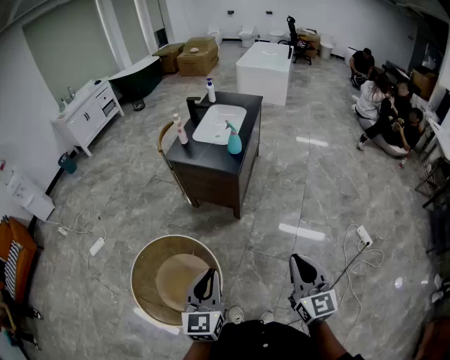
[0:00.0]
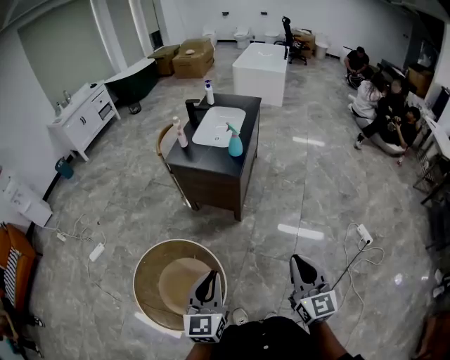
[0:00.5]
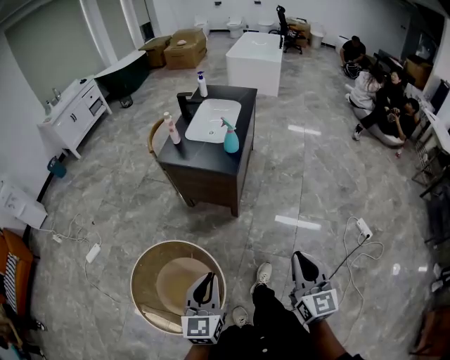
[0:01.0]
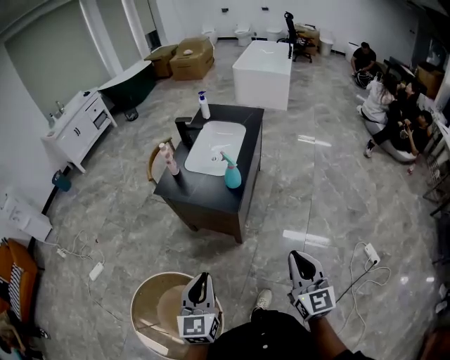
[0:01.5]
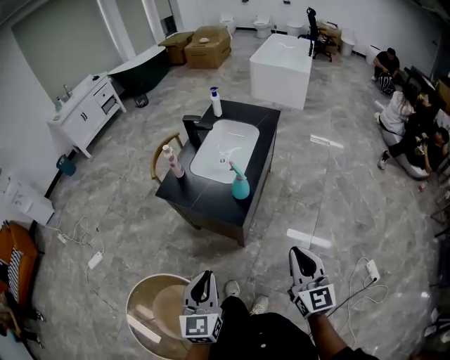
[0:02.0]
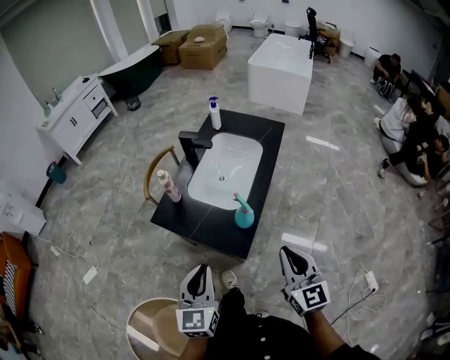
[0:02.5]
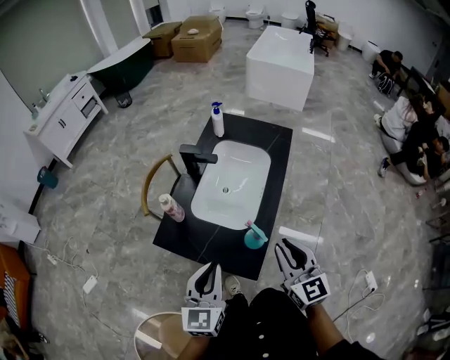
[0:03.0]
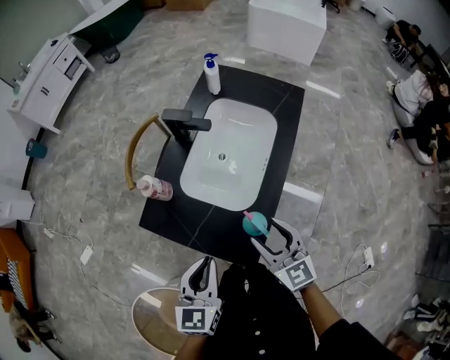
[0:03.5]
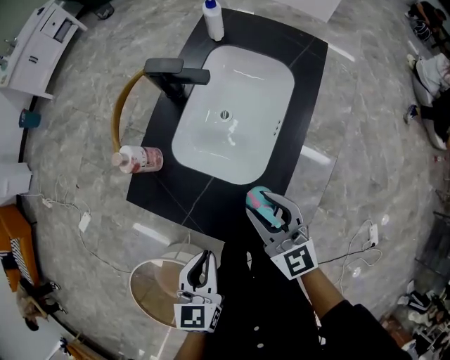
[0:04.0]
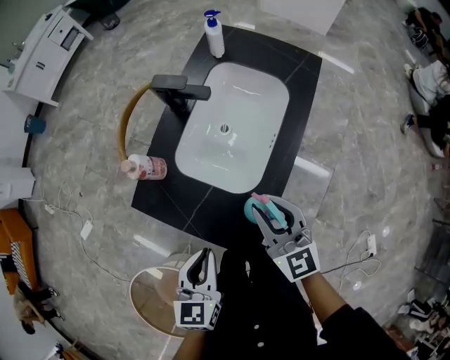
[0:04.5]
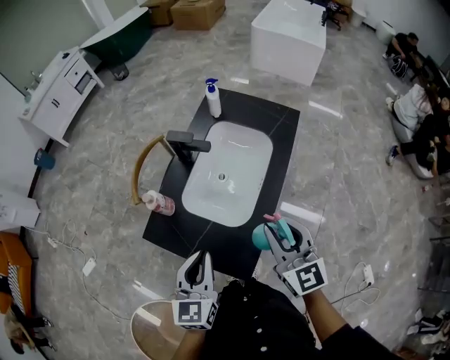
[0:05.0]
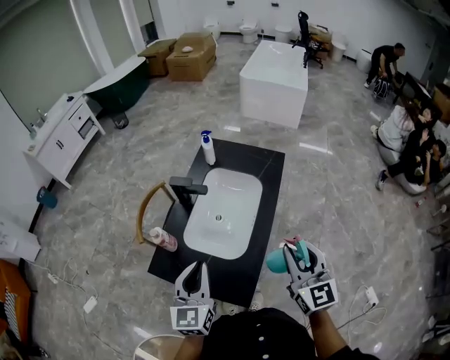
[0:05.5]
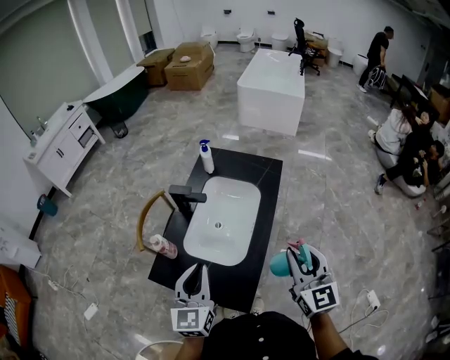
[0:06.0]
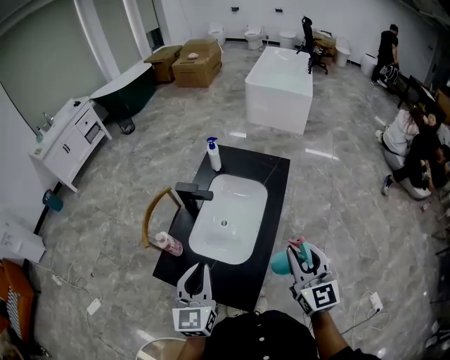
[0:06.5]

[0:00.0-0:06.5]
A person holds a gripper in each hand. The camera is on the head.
0:00.0 to 0:02.0: The two grippers go roughly 35 cm forward.
0:02.0 to 0:04.5: Both grippers move forward, about 35 cm. The right gripper opens up.
0:04.5 to 0:06.5: The left gripper is displaced upward and forward by about 20 cm, and swivels some 20 degrees. The right gripper shifts roughly 20 cm upward and to the right, and rotates approximately 20 degrees.

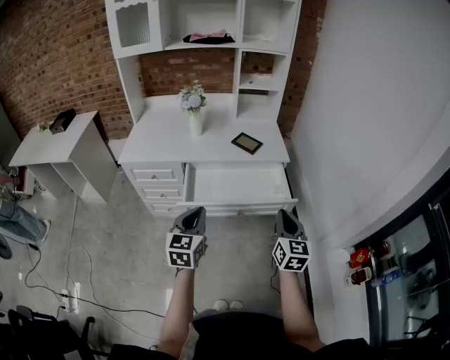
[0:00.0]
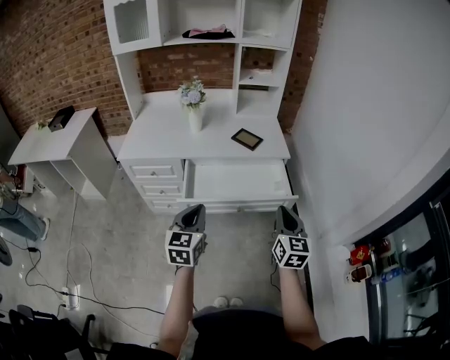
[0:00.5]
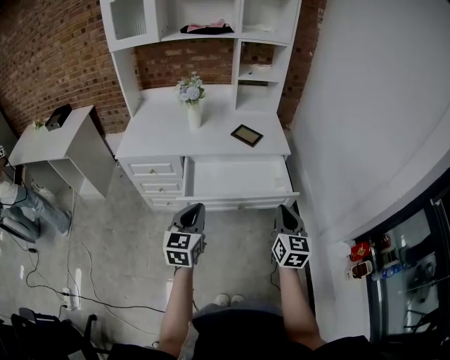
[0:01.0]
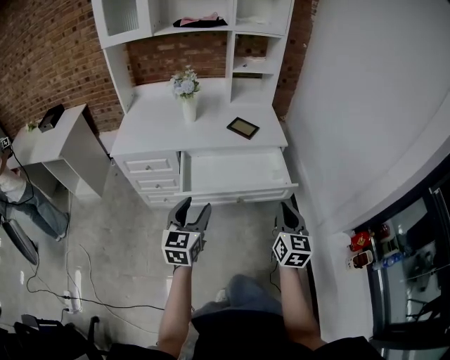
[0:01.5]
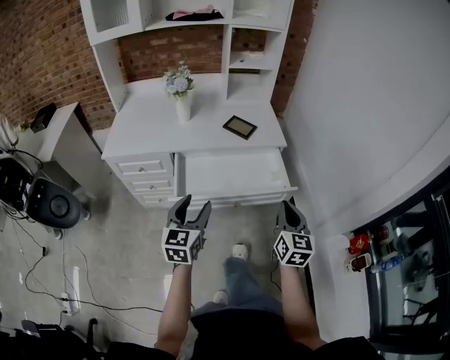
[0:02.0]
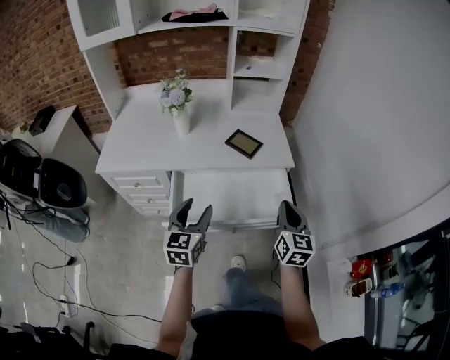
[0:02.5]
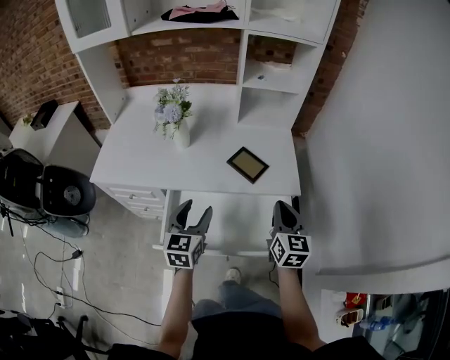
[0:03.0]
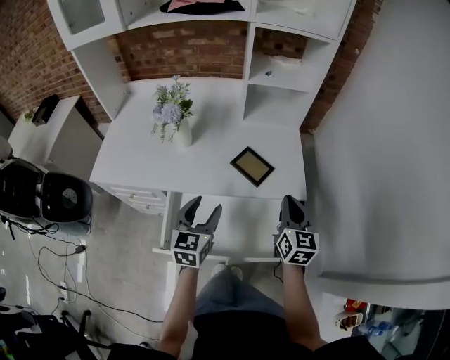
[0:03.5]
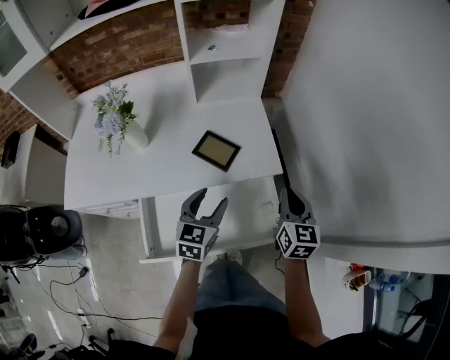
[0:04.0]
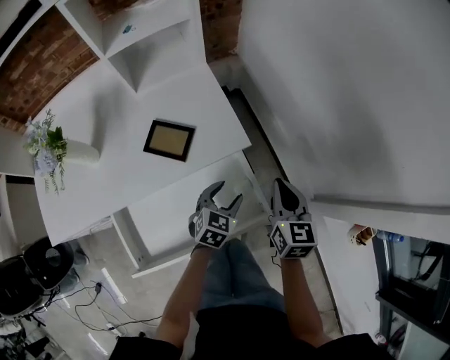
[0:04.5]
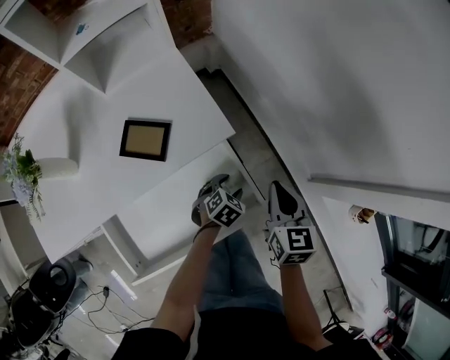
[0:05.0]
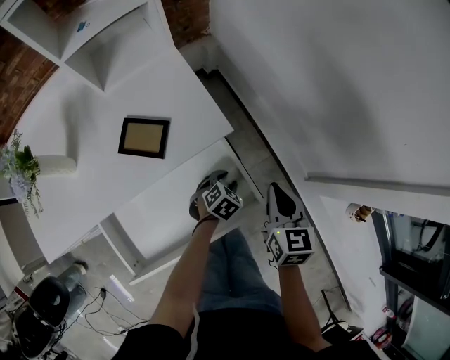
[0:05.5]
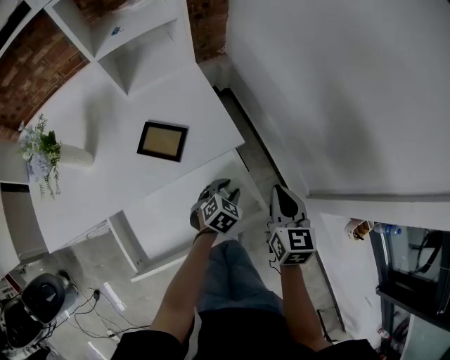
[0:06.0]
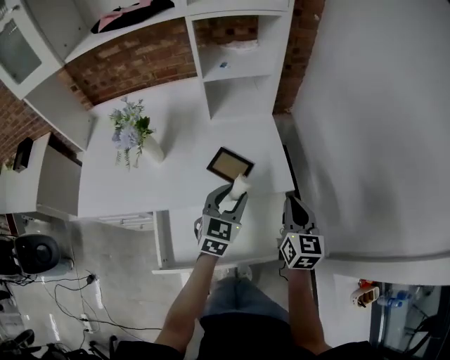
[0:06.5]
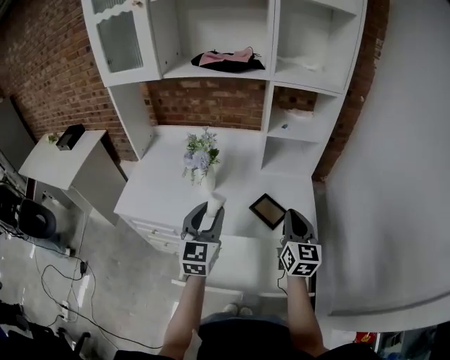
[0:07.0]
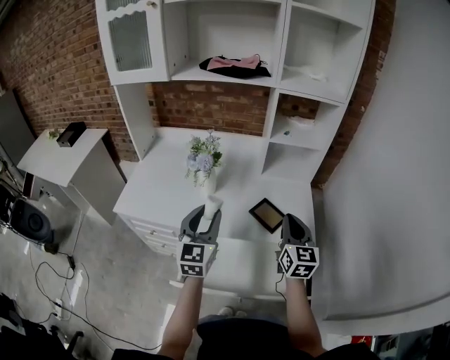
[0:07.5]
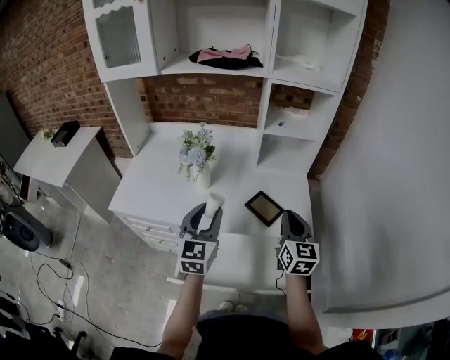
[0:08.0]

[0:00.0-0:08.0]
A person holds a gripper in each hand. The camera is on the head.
0:00.0 to 0:02.0: The left gripper goes about 5 cm forward, and opens.
0:02.0 to 0:04.0: The grippers both shift forward by roughly 35 cm.
0:04.0 to 0:06.0: The right gripper shifts by some 10 cm, while the left gripper is displaced downward by about 20 cm, and turns by some 50 degrees.
0:06.0 to 0:08.0: The left gripper shifts by approximately 50 cm, and angles its fingers upward, by approximately 50 degrees; the right gripper shifts by roughly 30 cm, and swivels some 30 degrees.

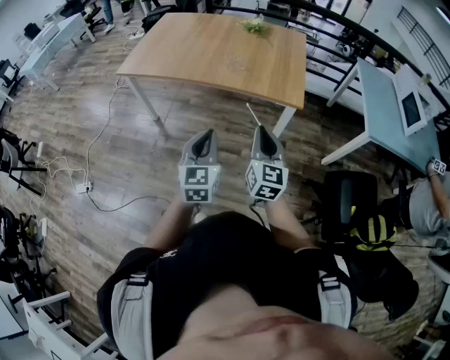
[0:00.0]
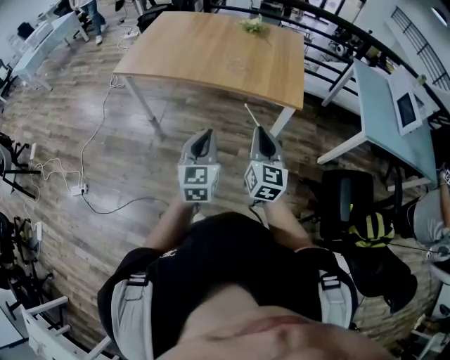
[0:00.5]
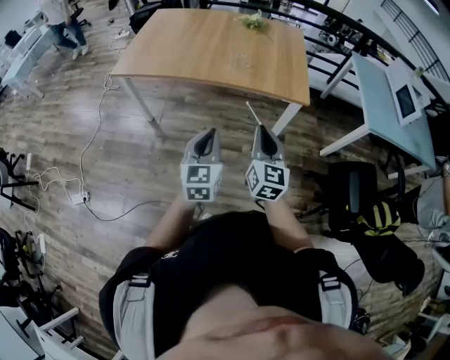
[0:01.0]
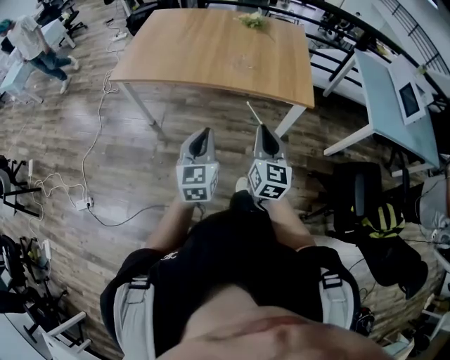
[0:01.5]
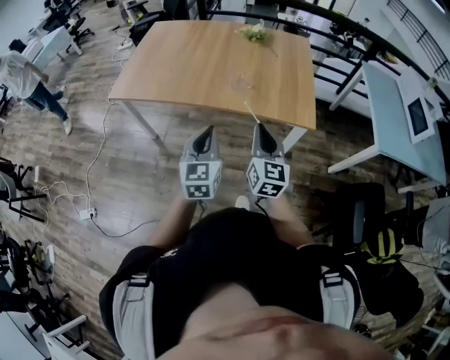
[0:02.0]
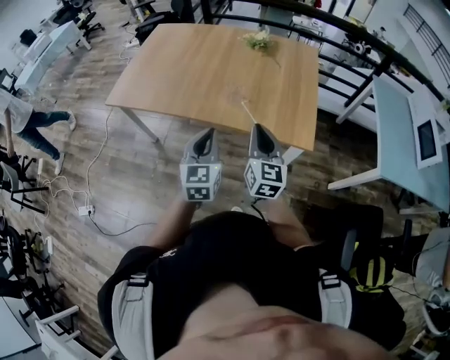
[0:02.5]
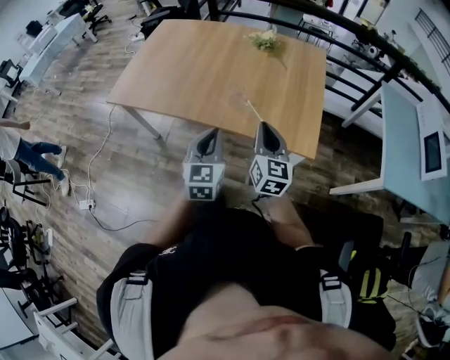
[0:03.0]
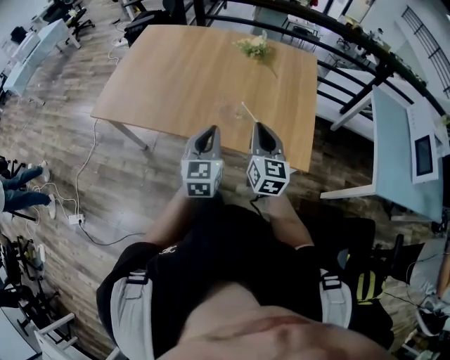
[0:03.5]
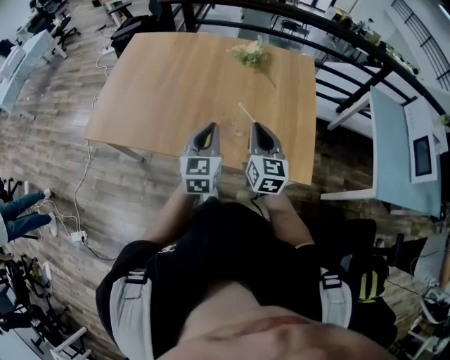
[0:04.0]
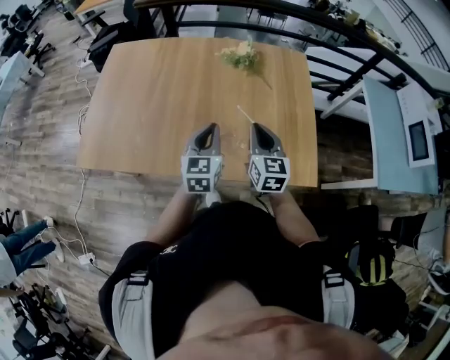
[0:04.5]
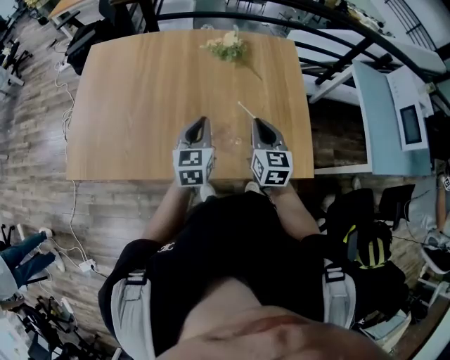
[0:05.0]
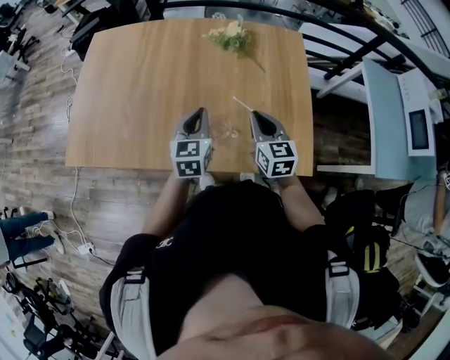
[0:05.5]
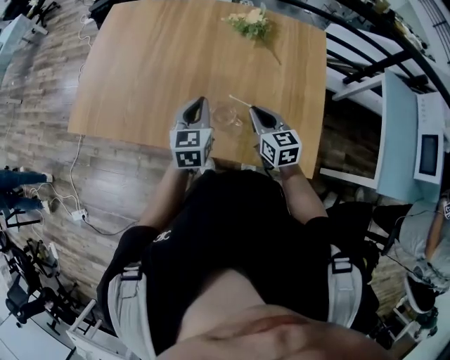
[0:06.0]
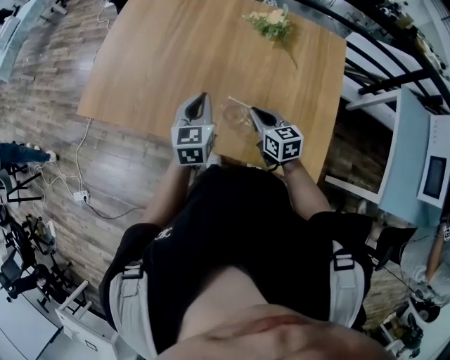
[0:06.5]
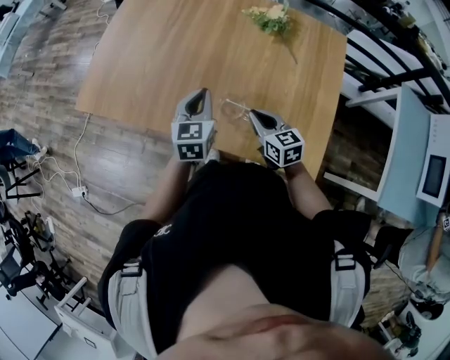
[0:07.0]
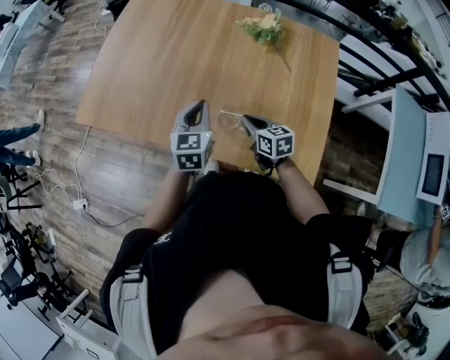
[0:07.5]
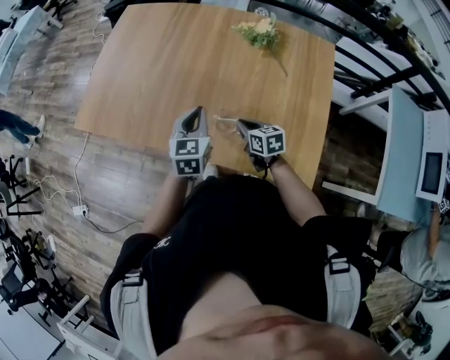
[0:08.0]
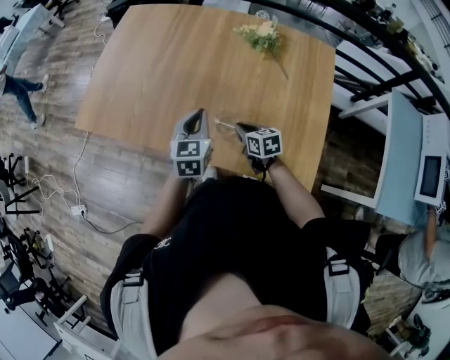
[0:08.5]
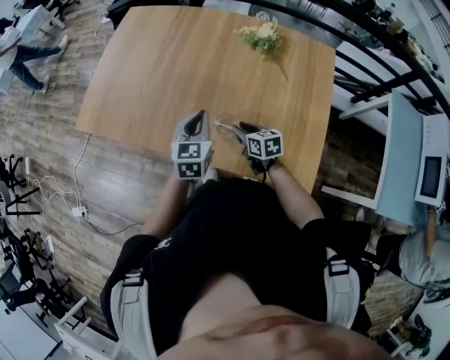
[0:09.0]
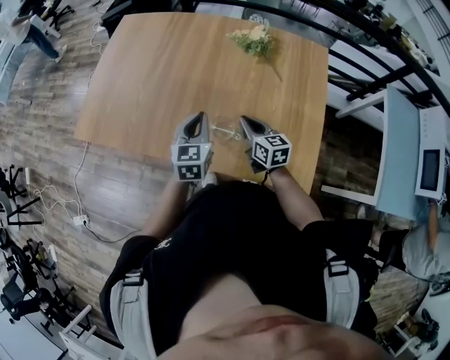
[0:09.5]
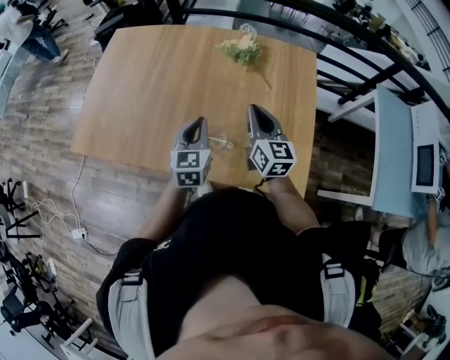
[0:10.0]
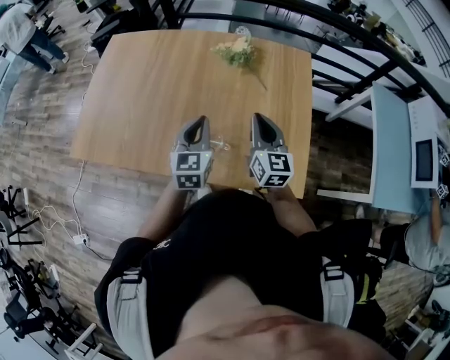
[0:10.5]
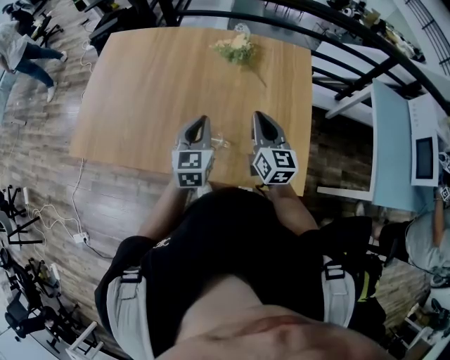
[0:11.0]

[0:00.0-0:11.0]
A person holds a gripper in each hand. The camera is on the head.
0:00.0 to 0:02.0: The grippers both shift forward and to the left by approximately 20 cm.
0:02.0 to 0:03.5: Both grippers travel together forward, about 20 cm.
0:03.5 to 0:05.5: The two grippers go about 20 cm forward.
0:05.5 to 0:07.5: The right gripper heads downward, covering some 10 cm, and rotates roughly 30 degrees.
0:07.5 to 0:09.0: The right gripper opens.
0:09.0 to 0:11.0: The left gripper is displaced to the right by about 5 cm. The right gripper travels upward and to the right by approximately 20 cm, swivels some 40 degrees, and closes up.

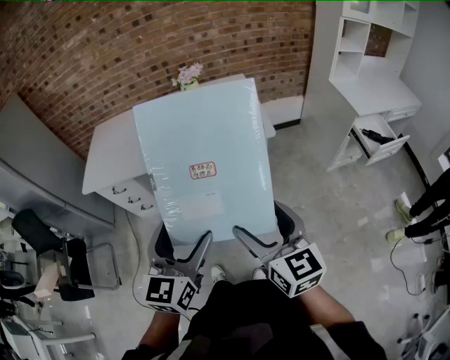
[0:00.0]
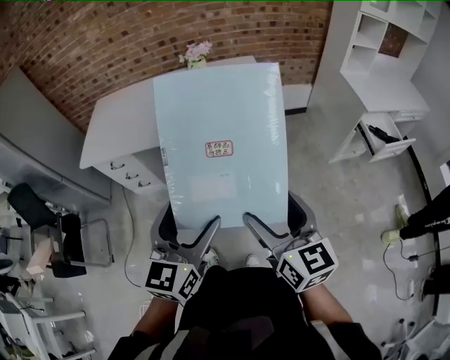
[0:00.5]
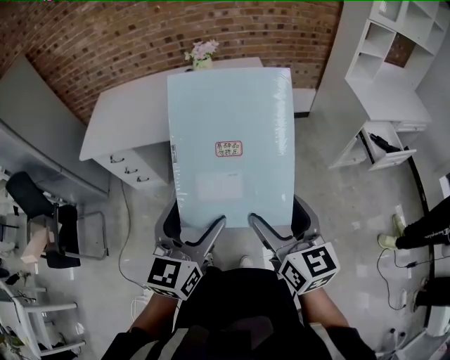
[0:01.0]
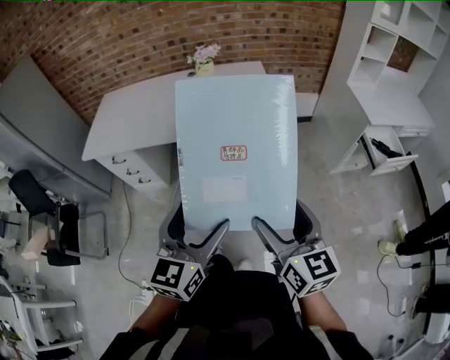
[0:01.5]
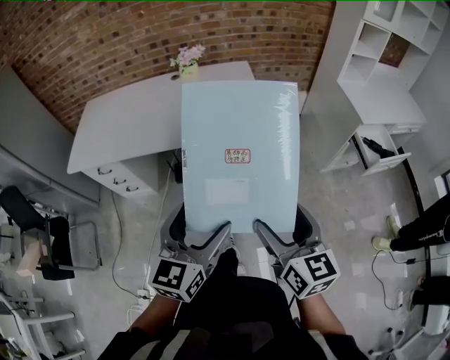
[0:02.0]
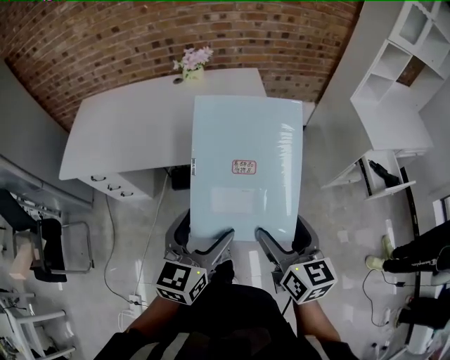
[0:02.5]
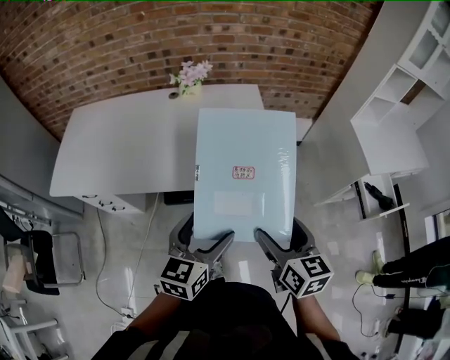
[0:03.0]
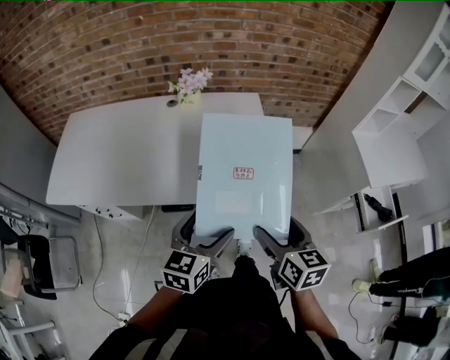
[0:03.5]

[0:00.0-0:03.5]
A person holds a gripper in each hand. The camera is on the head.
0:00.0 to 0:02.0: The left gripper heads to the right and forward, covering about 10 cm; the right gripper travels to the right by some 10 cm.
0:02.0 to 0:03.5: Both grippers move forward, some 30 cm.
